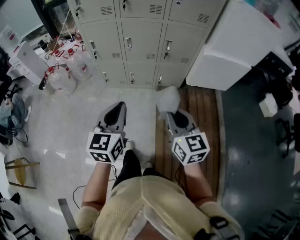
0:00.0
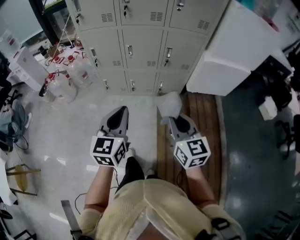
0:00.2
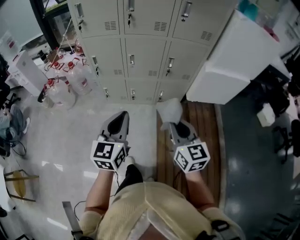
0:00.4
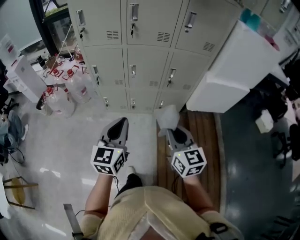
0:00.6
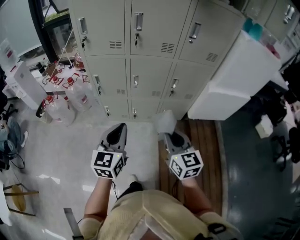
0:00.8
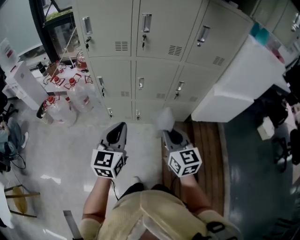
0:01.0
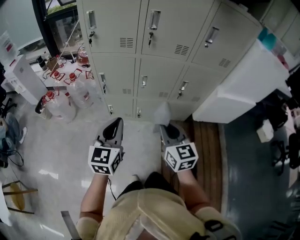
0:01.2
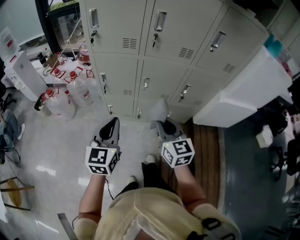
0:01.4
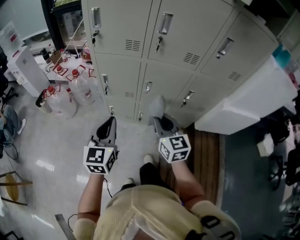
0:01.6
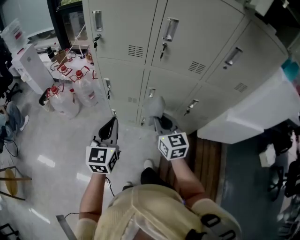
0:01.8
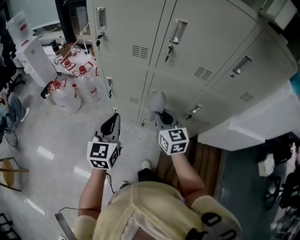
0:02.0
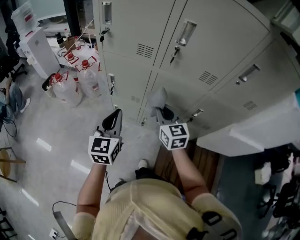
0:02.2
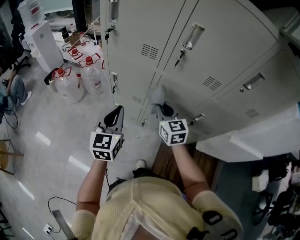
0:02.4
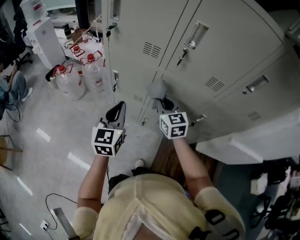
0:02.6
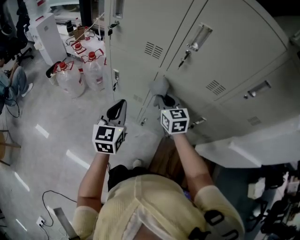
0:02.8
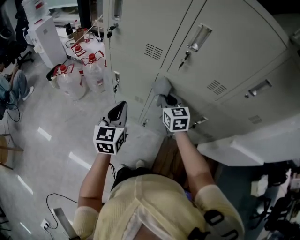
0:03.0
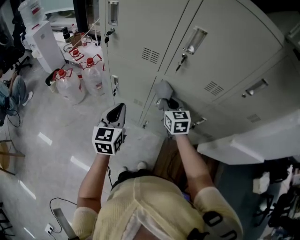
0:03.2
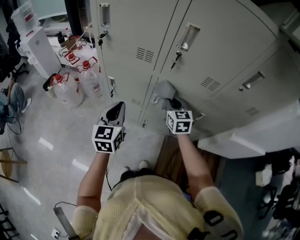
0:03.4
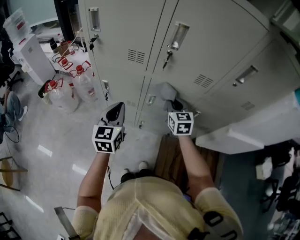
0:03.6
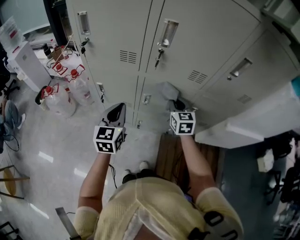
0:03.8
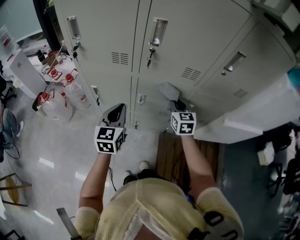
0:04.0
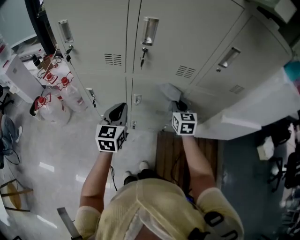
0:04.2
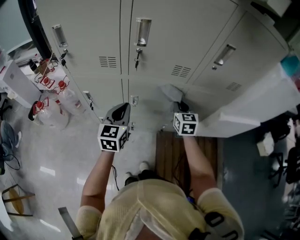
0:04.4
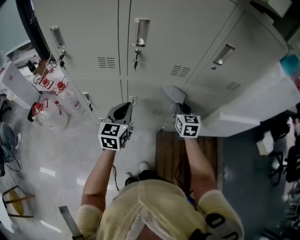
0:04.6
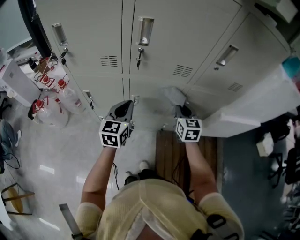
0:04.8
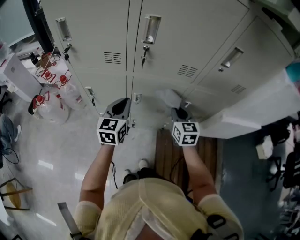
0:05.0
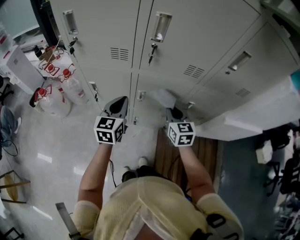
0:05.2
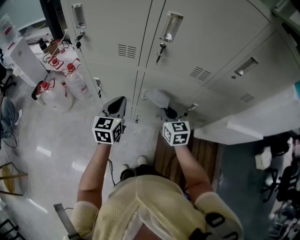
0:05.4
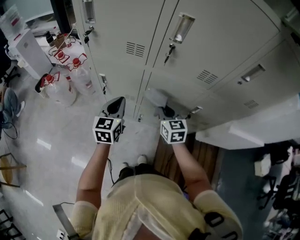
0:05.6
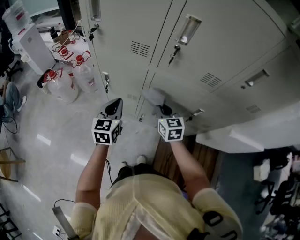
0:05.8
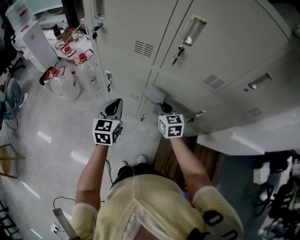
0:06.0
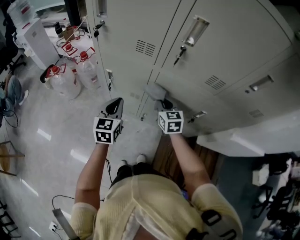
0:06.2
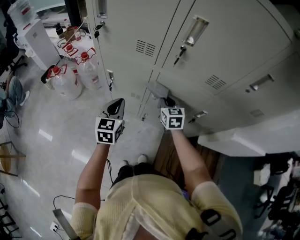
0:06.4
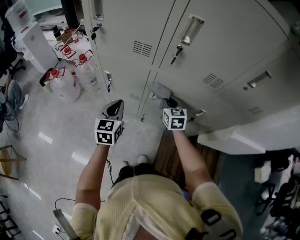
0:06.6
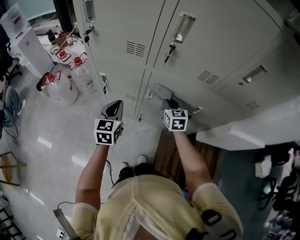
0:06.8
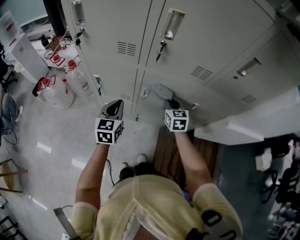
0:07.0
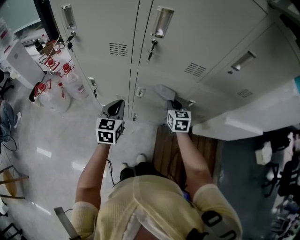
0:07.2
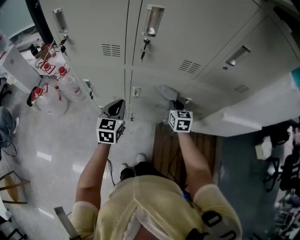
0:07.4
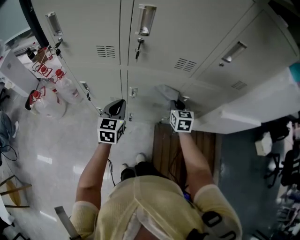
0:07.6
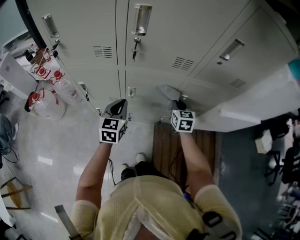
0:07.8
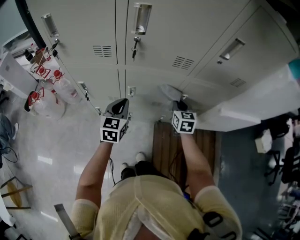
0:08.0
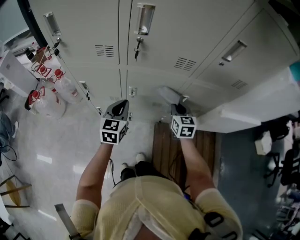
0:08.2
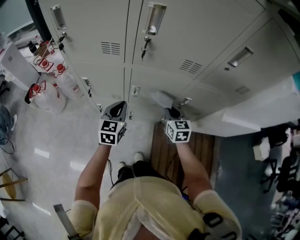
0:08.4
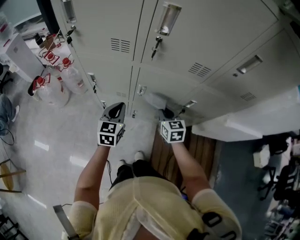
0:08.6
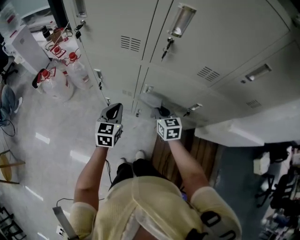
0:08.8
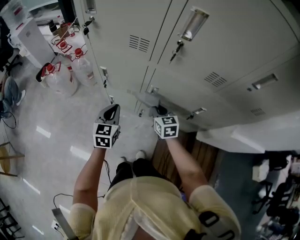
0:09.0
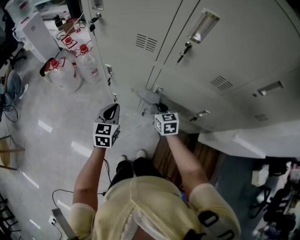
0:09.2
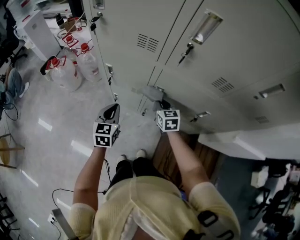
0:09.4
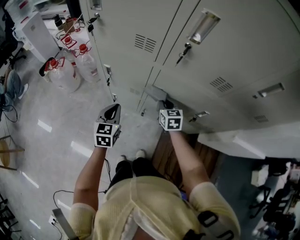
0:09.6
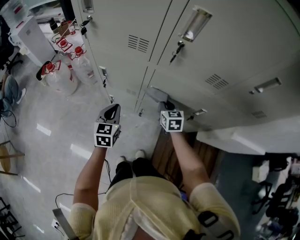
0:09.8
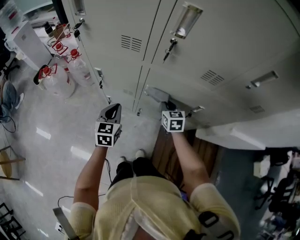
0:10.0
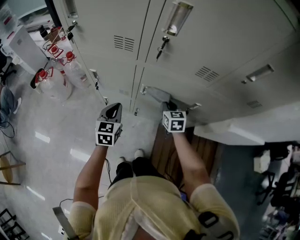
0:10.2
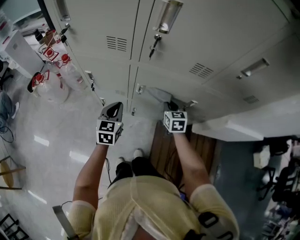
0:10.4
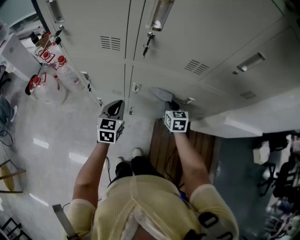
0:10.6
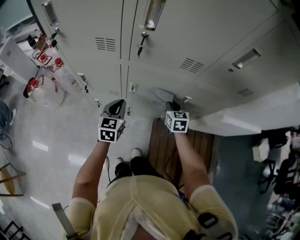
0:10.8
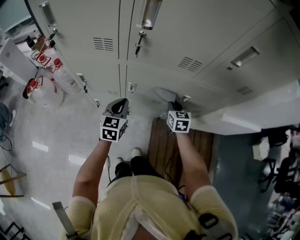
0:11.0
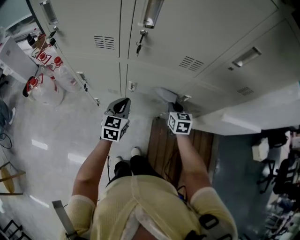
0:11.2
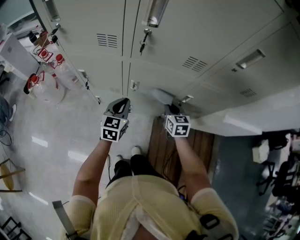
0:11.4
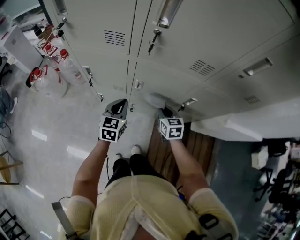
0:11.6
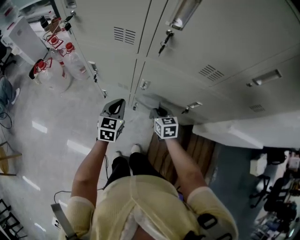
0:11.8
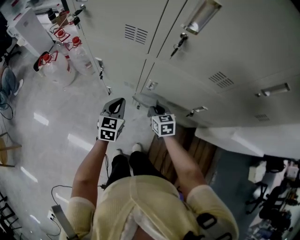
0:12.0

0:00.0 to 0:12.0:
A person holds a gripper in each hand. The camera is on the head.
0:00.0 to 0:01.6: The two grippers go about 35 cm forward and to the left.
0:01.6 to 0:03.0: The left gripper travels forward by some 15 cm; the right gripper heads forward, covering approximately 25 cm.
0:03.0 to 0:04.4: The right gripper shifts by approximately 20 cm, and turns by about 30 degrees; the left gripper shifts by some 15 cm, and rotates approximately 20 degrees.
0:04.4 to 0:06.0: The right gripper moves to the left, approximately 20 cm, and swivels some 20 degrees, while the left gripper moves to the left and downward, about 15 cm.
0:06.0 to 0:07.6: The right gripper goes roughly 20 cm to the right, and changes its angle by about 20 degrees; the left gripper moves to the right, some 10 cm.
0:07.6 to 0:09.0: The left gripper travels to the left and downward by approximately 10 cm. The right gripper is displaced to the left by some 20 cm, and rotates roughly 30 degrees.
0:09.0 to 0:10.4: The right gripper goes roughly 15 cm to the right. Meanwhile the left gripper shifts about 5 cm to the right.
0:10.4 to 0:12.0: The left gripper moves roughly 5 cm to the right and comes back, while the right gripper is displaced to the left and downward by some 10 cm.

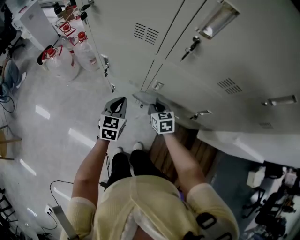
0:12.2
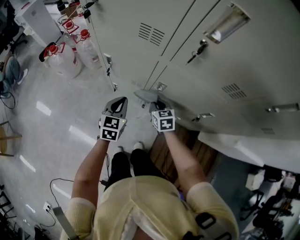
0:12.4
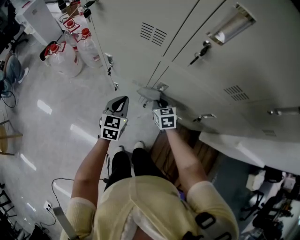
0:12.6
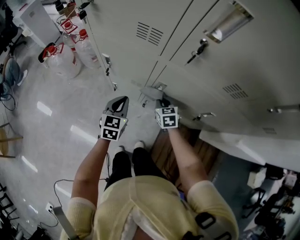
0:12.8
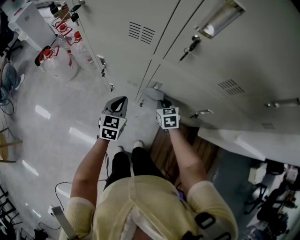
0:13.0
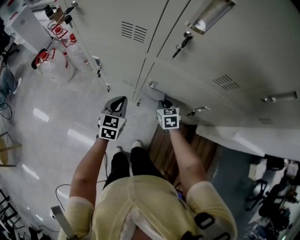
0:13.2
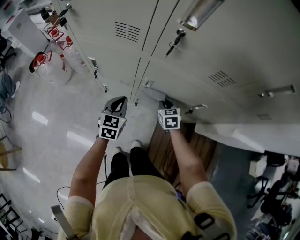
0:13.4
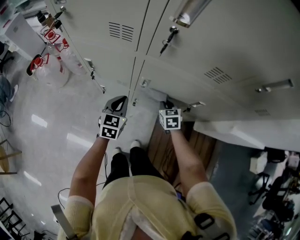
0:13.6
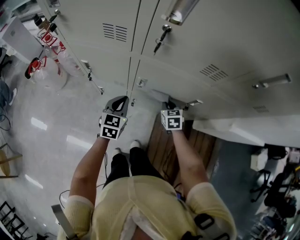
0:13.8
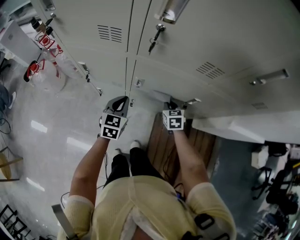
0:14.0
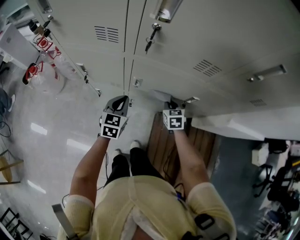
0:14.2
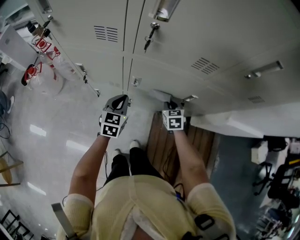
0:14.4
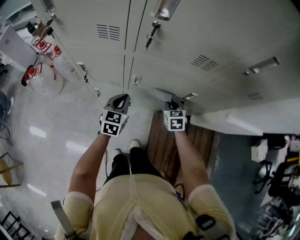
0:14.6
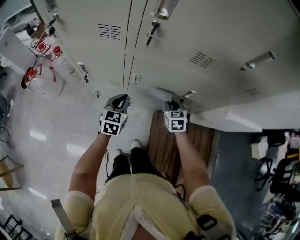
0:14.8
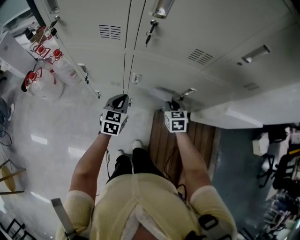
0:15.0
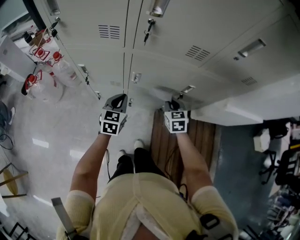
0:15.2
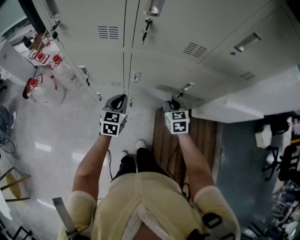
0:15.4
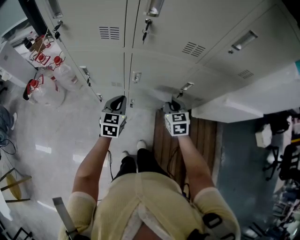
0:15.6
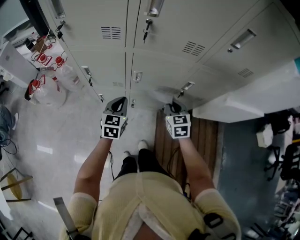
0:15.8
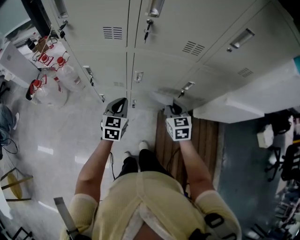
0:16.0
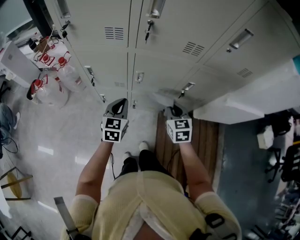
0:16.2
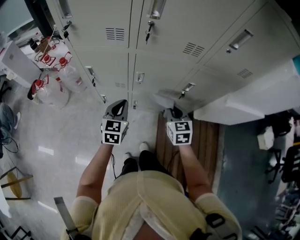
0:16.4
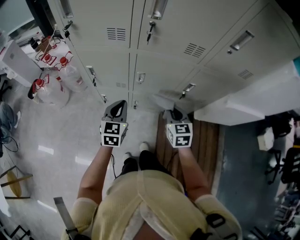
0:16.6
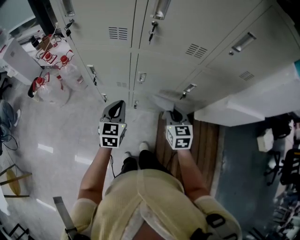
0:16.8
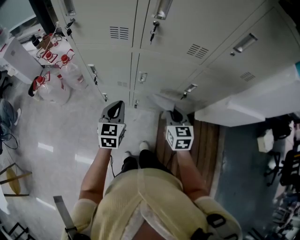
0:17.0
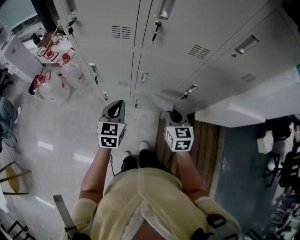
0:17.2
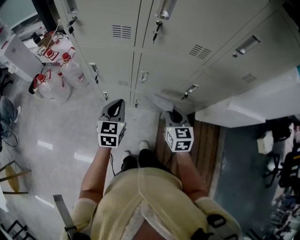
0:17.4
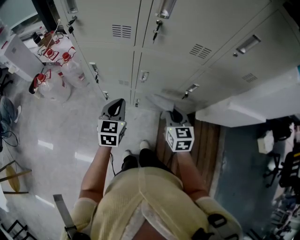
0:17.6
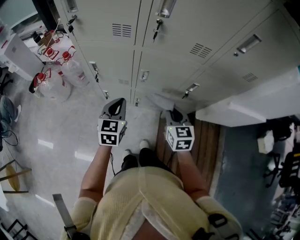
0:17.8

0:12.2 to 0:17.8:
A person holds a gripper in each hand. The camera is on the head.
0:12.2 to 0:13.6: The right gripper moves to the right, about 10 cm. The left gripper heads to the right, covering about 5 cm.
0:13.6 to 0:15.0: The right gripper shifts approximately 10 cm to the right and upward.
0:15.0 to 0:16.4: The two grippers go roughly 10 cm backward and upward.
0:16.4 to 0:17.8: The grippers stay close to where they were, moving slightly.

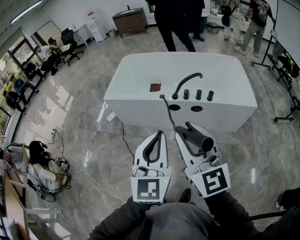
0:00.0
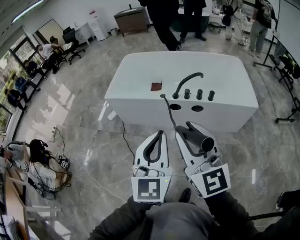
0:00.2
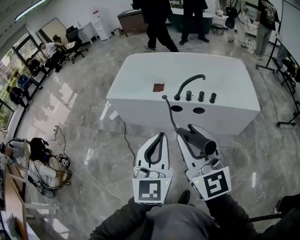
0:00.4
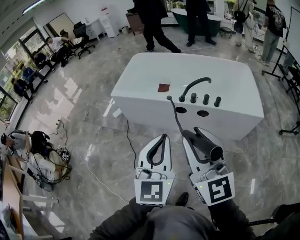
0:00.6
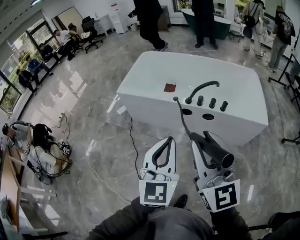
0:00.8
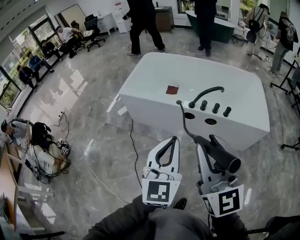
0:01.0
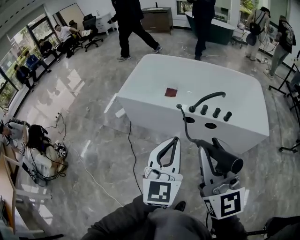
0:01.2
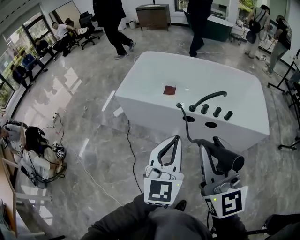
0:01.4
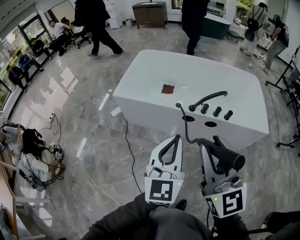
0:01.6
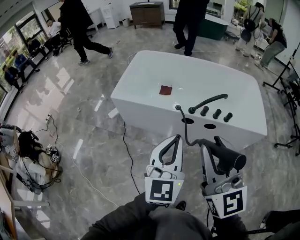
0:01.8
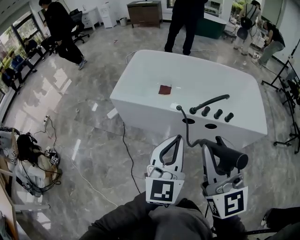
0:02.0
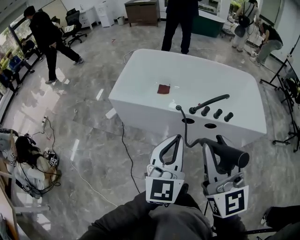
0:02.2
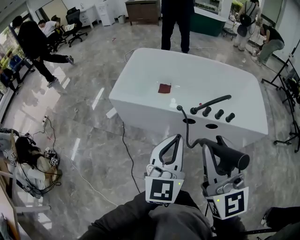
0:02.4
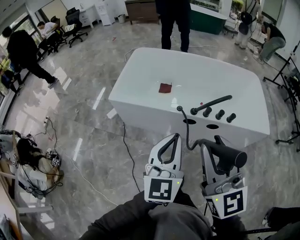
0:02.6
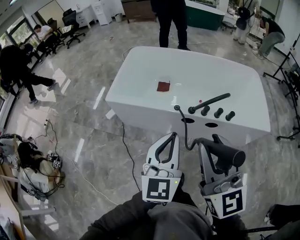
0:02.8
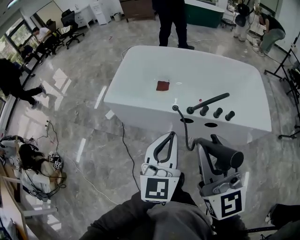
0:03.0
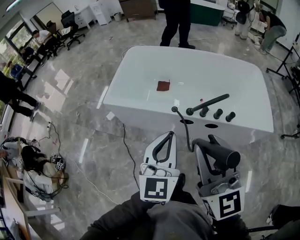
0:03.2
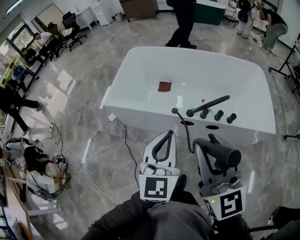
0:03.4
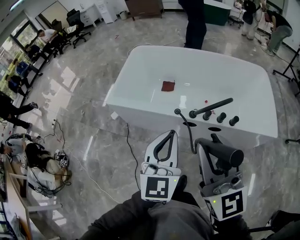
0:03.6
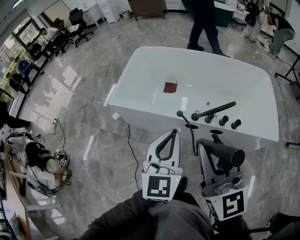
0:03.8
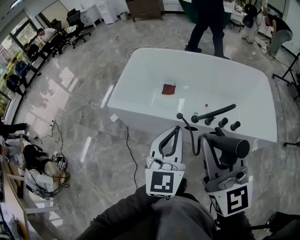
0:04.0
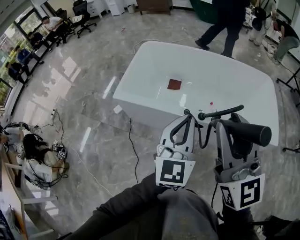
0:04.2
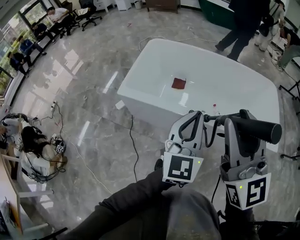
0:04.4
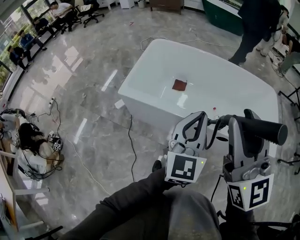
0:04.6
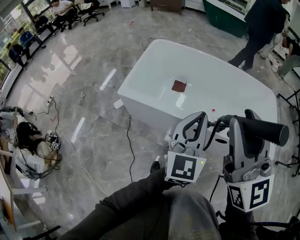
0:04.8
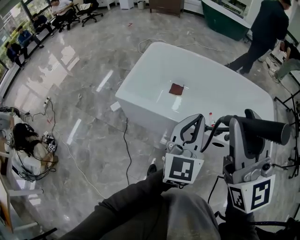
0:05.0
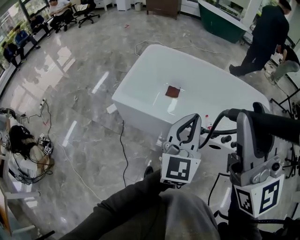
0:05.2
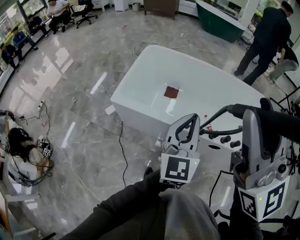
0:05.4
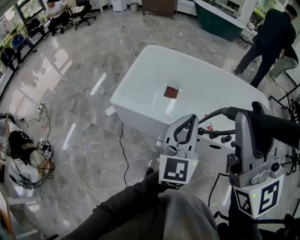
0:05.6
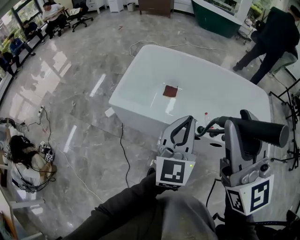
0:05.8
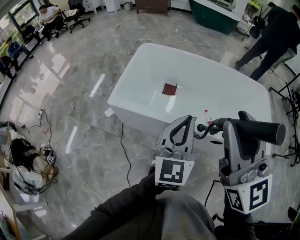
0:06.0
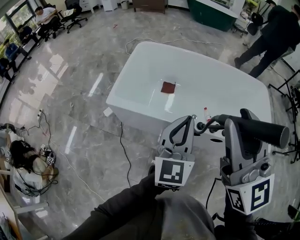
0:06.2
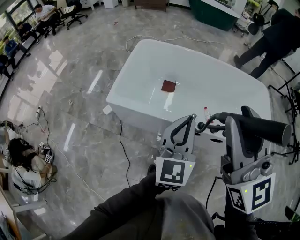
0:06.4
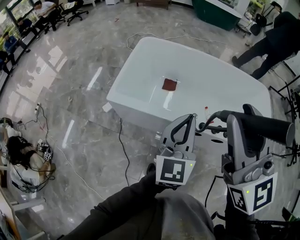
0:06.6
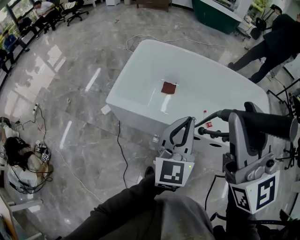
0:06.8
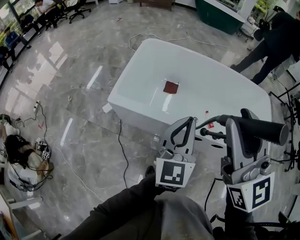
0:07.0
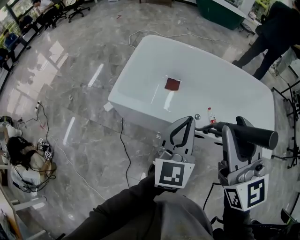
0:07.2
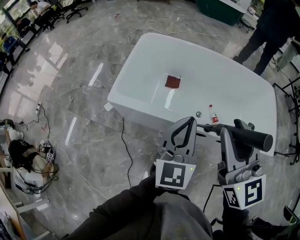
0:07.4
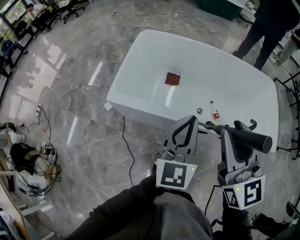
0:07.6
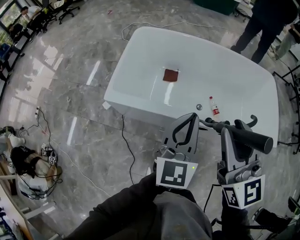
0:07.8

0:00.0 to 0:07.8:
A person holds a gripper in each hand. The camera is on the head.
0:00.0 to 0:01.6: Both grippers move forward, approximately 10 cm.
0:01.6 to 0:03.2: Both grippers travel together forward, roughly 10 cm.
0:03.2 to 0:04.6: The left gripper moves forward, about 10 cm; the right gripper is displaced forward, upward and to the left by roughly 15 cm.
0:04.6 to 0:06.2: The left gripper shifts by approximately 5 cm. Meanwhile the right gripper travels upward and back again, approximately 10 cm each way.
0:06.2 to 0:07.8: The right gripper travels downward and forward by about 15 cm, while the left gripper travels forward by approximately 5 cm.
